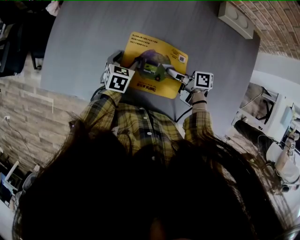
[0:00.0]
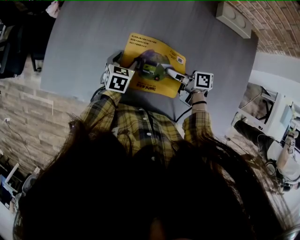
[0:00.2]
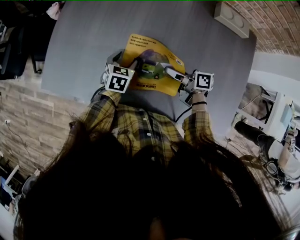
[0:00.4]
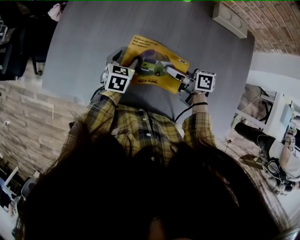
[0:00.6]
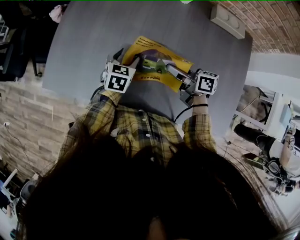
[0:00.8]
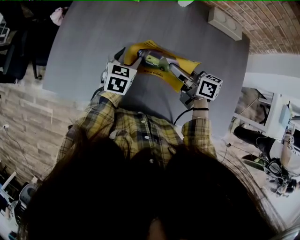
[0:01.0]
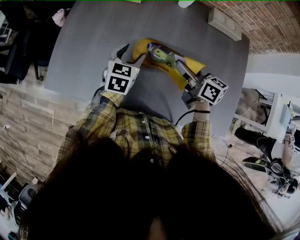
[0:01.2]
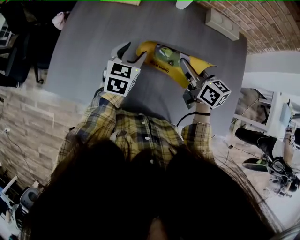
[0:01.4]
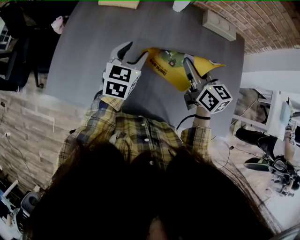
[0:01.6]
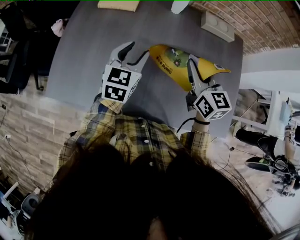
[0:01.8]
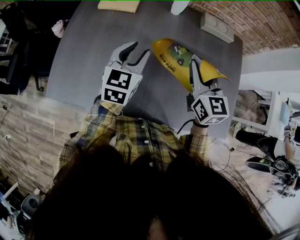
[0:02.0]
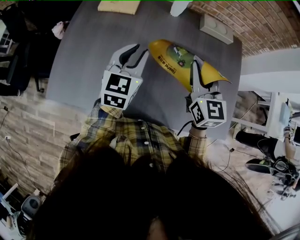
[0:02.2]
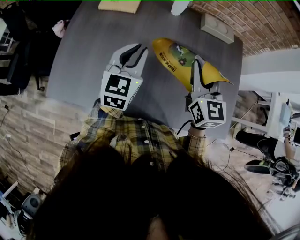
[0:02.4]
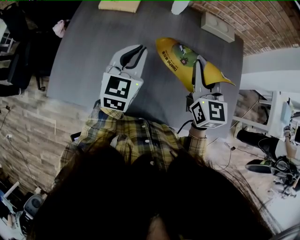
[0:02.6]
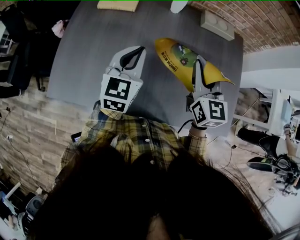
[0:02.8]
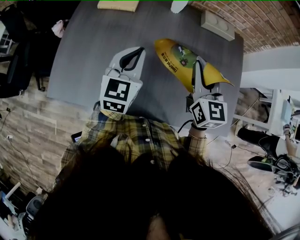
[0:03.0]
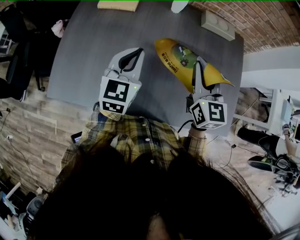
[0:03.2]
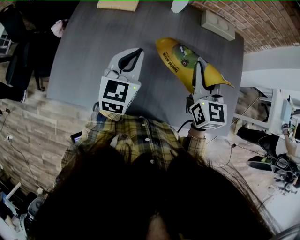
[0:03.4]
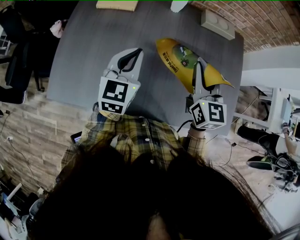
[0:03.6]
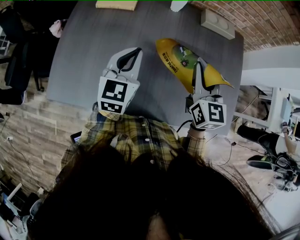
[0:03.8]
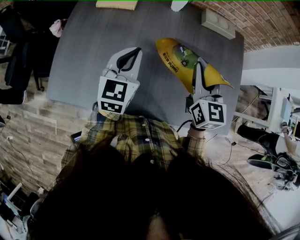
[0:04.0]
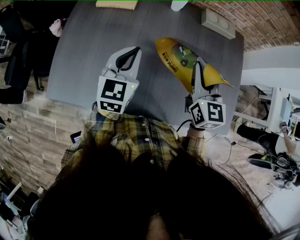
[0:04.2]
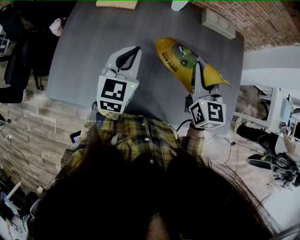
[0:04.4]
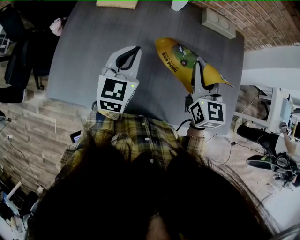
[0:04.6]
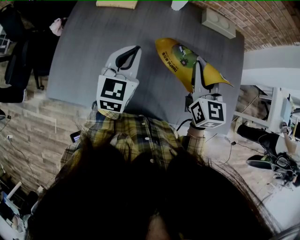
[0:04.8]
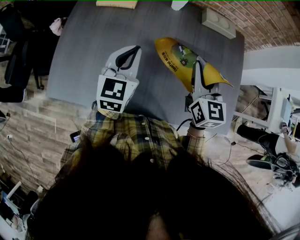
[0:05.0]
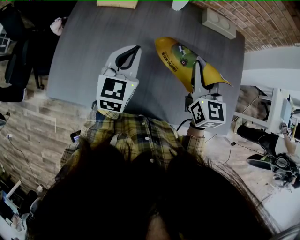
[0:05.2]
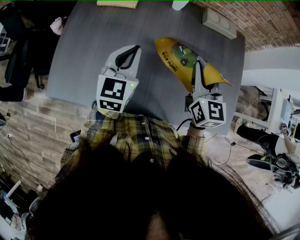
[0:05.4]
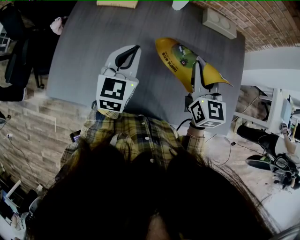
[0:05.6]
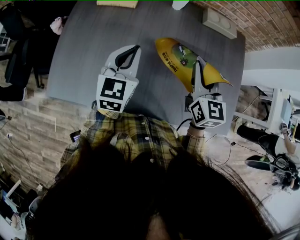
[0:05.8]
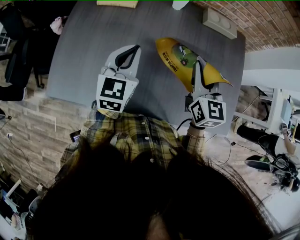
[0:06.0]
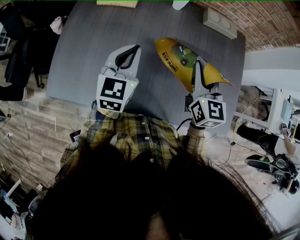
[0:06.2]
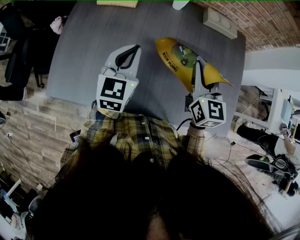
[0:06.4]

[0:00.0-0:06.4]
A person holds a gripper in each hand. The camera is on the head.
0:00.0 to 0:01.6: Both grippers move upward, approximately 20 cm. The left gripper swivels some 30 degrees. The right gripper changes its angle by about 60 degrees.
0:01.6 to 0:03.2: The two grippers go about 5 cm upward. The left gripper closes, while the right gripper rotates some 30 degrees.
0:03.2 to 0:04.8: The grippers make only small movements.
0:04.8 to 0:06.4: Both grippers stay put.

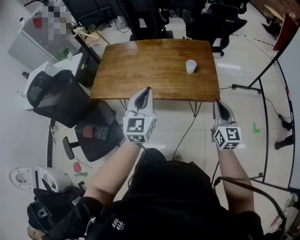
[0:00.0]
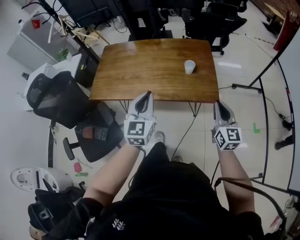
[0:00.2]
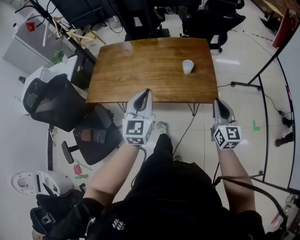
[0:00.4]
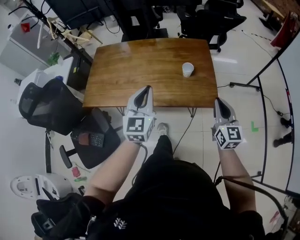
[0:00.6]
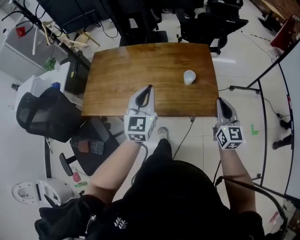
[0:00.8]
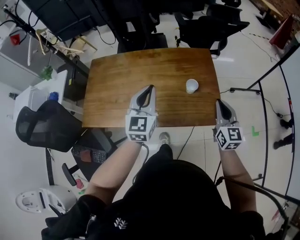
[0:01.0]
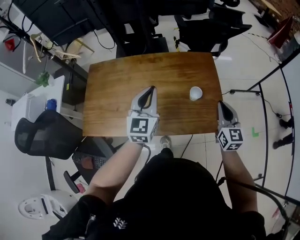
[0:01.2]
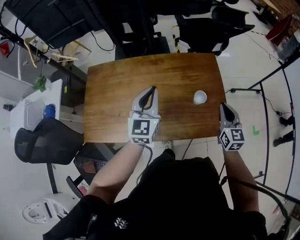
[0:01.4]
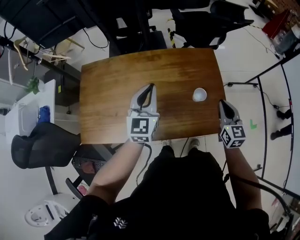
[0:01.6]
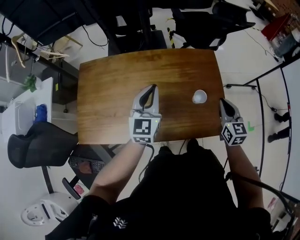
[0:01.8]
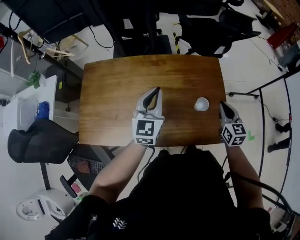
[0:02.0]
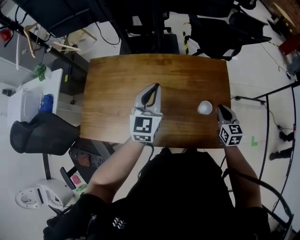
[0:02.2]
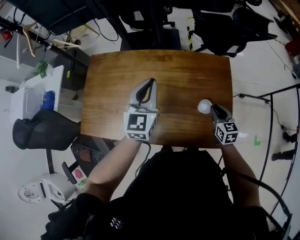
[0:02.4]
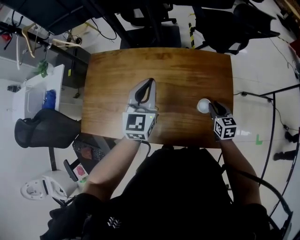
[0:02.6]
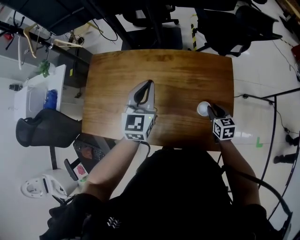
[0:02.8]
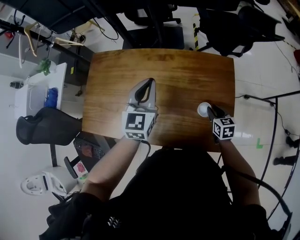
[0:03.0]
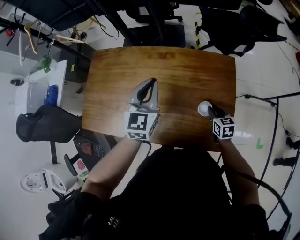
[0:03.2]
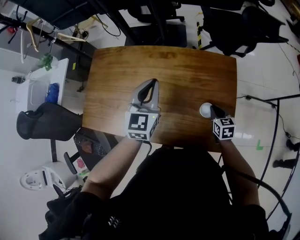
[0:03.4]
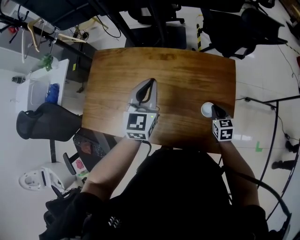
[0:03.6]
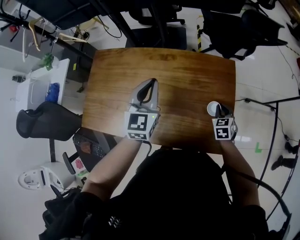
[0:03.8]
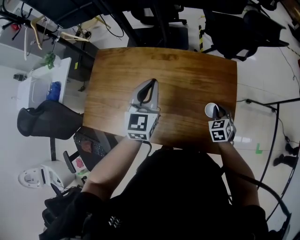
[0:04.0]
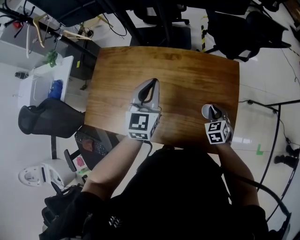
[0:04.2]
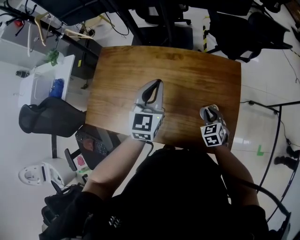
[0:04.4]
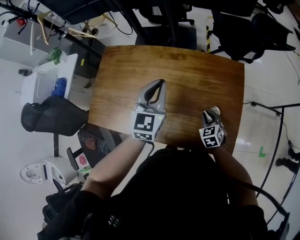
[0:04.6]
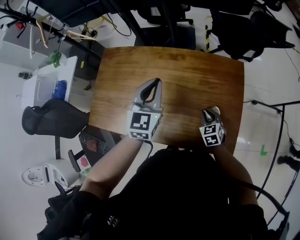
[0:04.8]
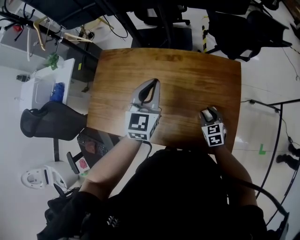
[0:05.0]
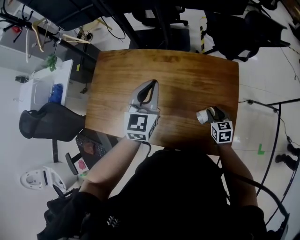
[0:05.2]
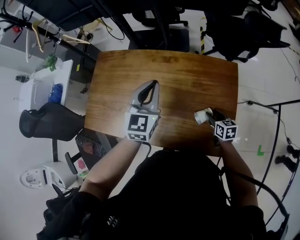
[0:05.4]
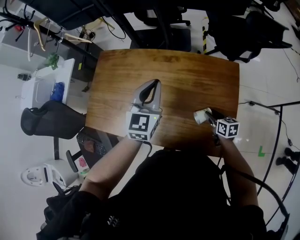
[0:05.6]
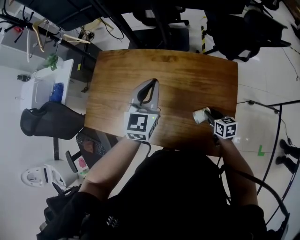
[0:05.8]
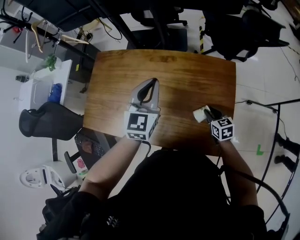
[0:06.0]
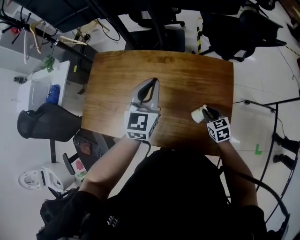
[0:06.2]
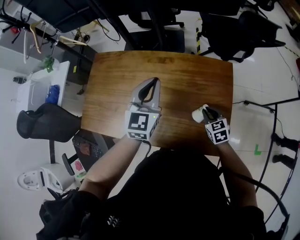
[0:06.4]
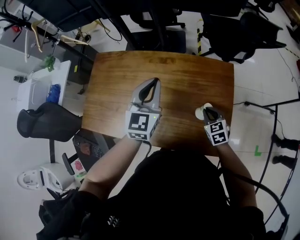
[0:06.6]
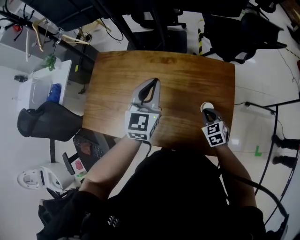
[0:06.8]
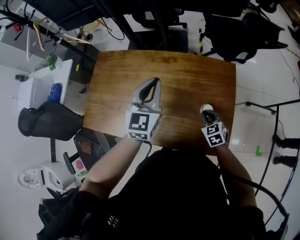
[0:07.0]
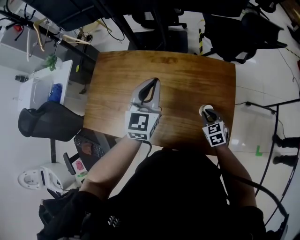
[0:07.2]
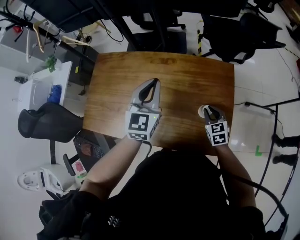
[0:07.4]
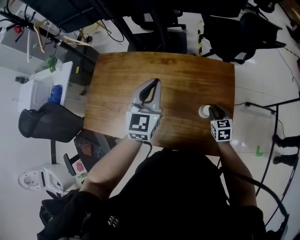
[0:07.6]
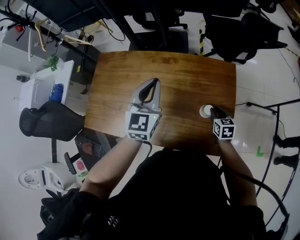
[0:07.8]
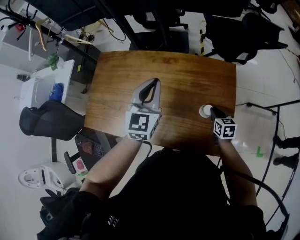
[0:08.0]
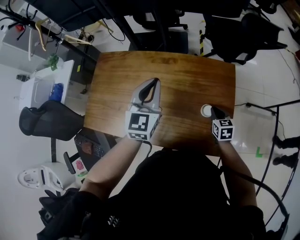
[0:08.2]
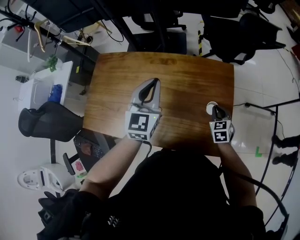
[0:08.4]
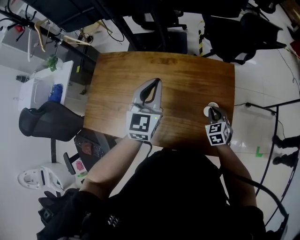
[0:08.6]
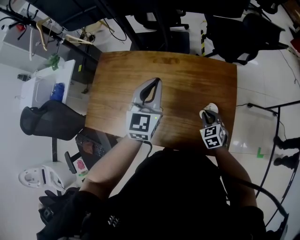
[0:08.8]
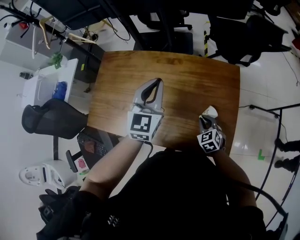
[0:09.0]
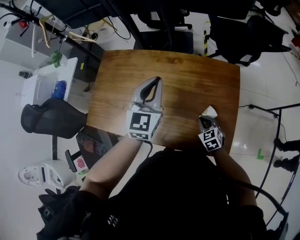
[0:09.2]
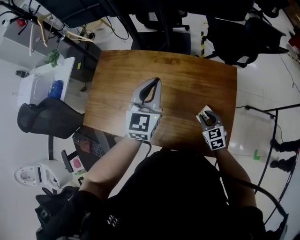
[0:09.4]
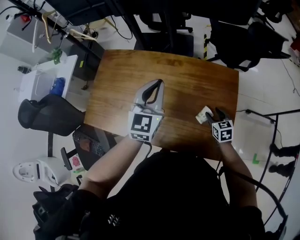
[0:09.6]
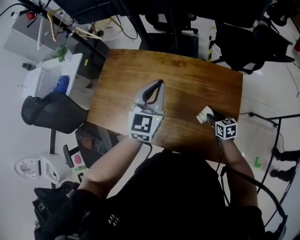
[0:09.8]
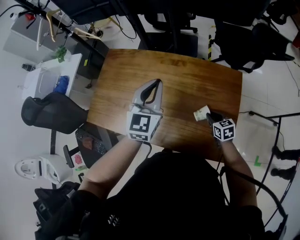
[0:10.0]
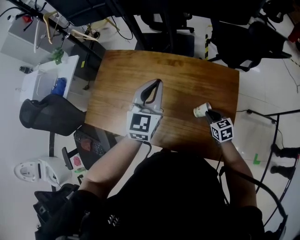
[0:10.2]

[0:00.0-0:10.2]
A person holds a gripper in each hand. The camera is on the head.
0:00.0 to 0:01.4: The two grippers go roughly 25 cm forward.
0:01.4 to 0:03.0: The right gripper is displaced downward and forward by some 20 cm, rotates approximately 30 degrees, and opens; the left gripper heads forward, covering some 5 cm.
0:03.0 to 0:04.4: The right gripper shifts about 5 cm to the left, and changes its angle by approximately 30 degrees.
0:04.4 to 0:05.8: The right gripper turns by about 40 degrees, and opens.
0:05.8 to 0:07.2: The right gripper changes its angle by roughly 30 degrees, and closes up.
0:08.8 to 0:10.2: The right gripper opens and closes again.

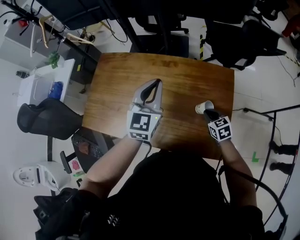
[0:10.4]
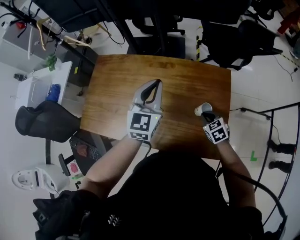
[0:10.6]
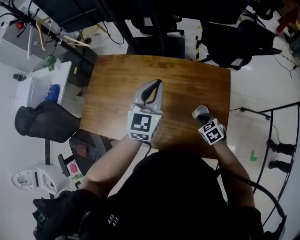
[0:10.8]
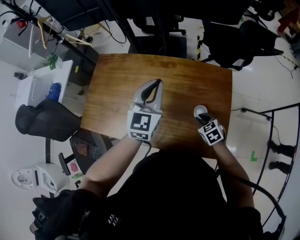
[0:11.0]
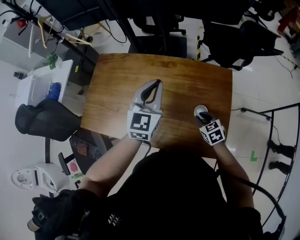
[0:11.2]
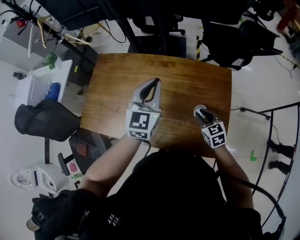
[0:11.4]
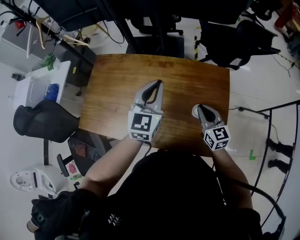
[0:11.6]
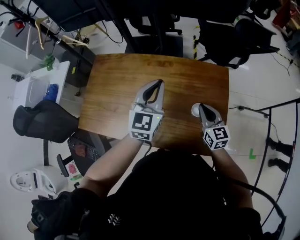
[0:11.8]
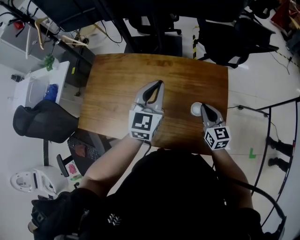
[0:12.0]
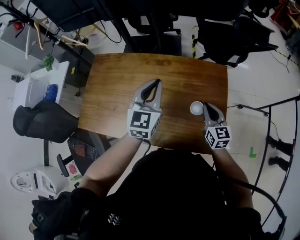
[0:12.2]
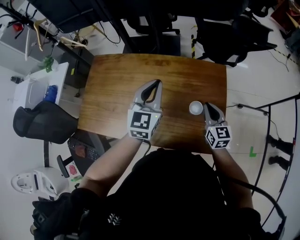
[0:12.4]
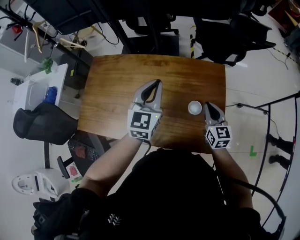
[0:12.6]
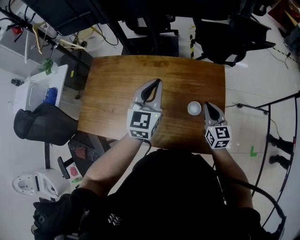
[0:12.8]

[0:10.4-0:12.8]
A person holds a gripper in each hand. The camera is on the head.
0:10.4 to 0:11.6: The right gripper shifts approximately 10 cm upward, and changes its angle by approximately 30 degrees.
0:11.6 to 0:12.8: The right gripper goes roughly 5 cm to the right.

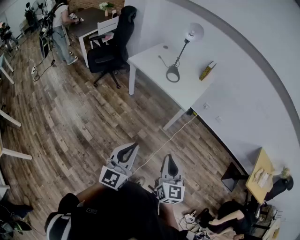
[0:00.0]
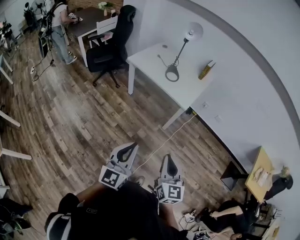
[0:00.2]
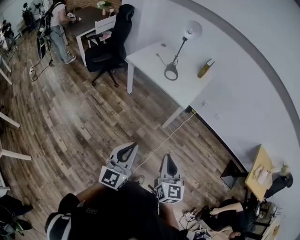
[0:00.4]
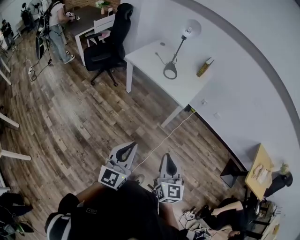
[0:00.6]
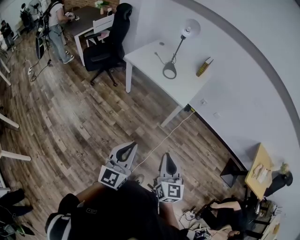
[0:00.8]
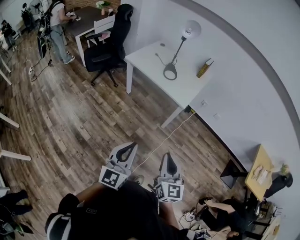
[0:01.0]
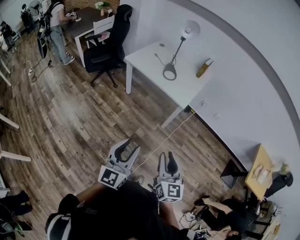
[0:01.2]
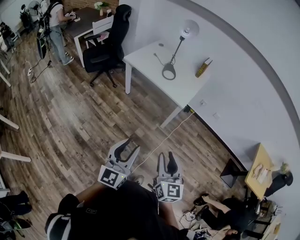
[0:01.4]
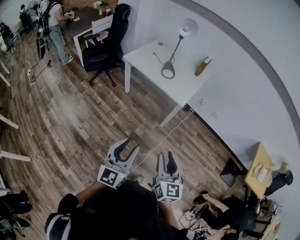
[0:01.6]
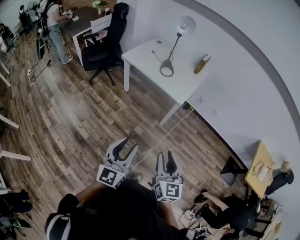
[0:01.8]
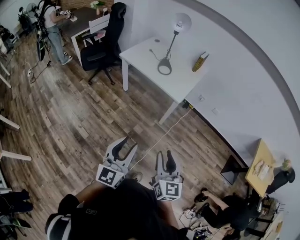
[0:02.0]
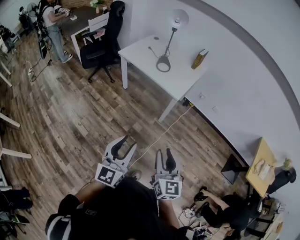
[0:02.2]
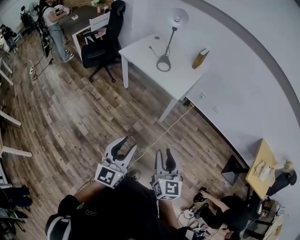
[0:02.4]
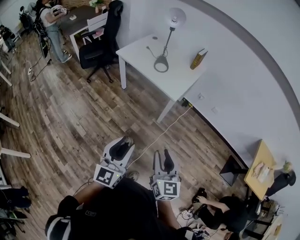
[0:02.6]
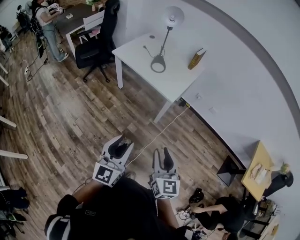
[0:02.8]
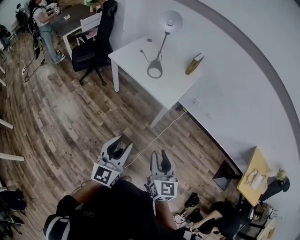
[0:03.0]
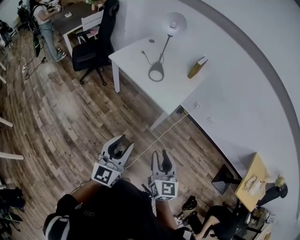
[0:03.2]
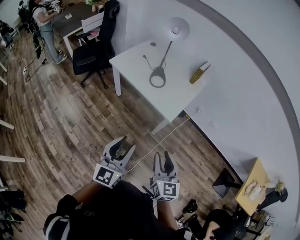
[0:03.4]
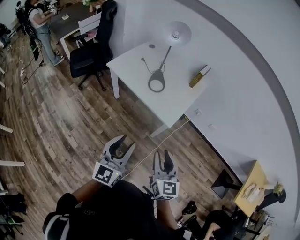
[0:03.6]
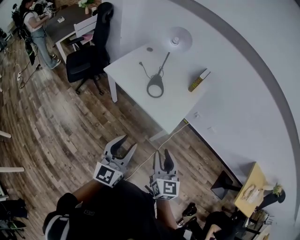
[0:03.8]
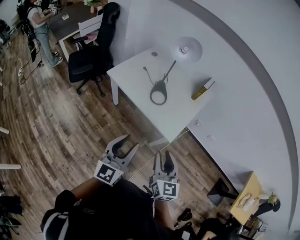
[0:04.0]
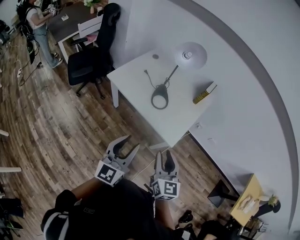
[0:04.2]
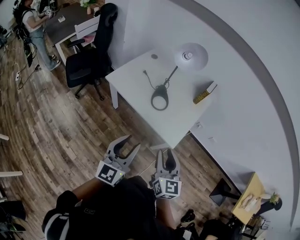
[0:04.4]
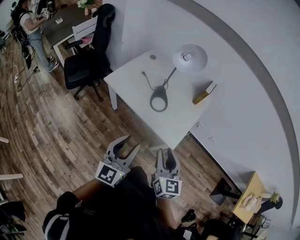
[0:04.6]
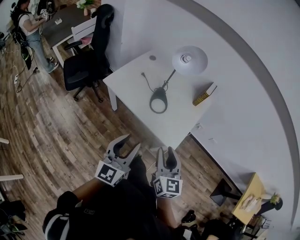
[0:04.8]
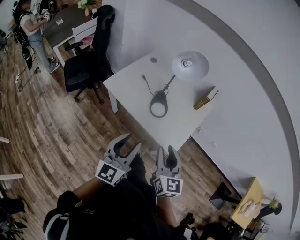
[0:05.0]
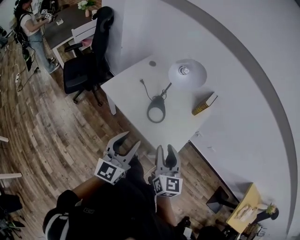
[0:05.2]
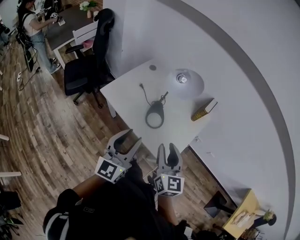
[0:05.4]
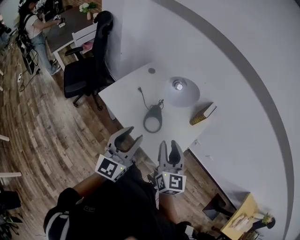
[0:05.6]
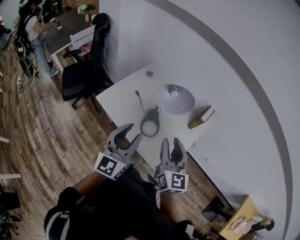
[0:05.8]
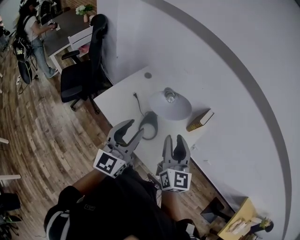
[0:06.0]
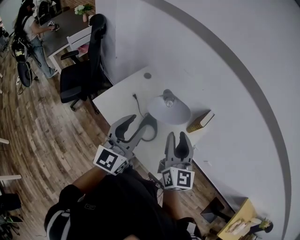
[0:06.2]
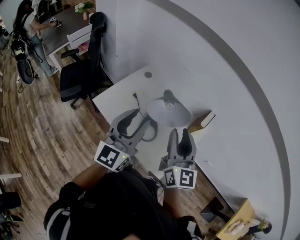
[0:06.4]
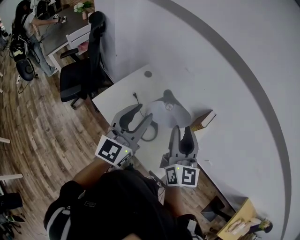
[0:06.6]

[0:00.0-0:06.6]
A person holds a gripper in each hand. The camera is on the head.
0:00.0 to 0:01.6: The right gripper opens its fingers. Meanwhile the left gripper opens its fingers.
0:01.6 to 0:03.2: Both grippers move forward and to the right, some 20 cm.
0:03.2 to 0:05.0: The grippers both shift forward by some 35 cm.
0:05.0 to 0:06.6: The two grippers go about 30 cm forward and upward.
